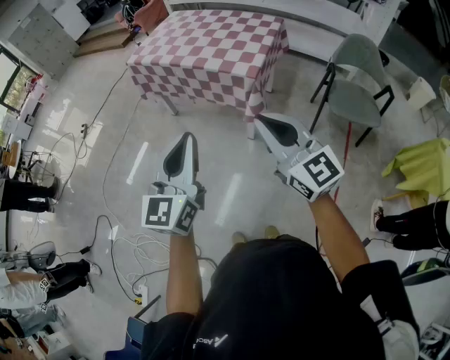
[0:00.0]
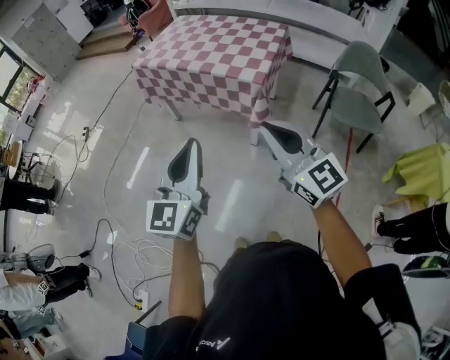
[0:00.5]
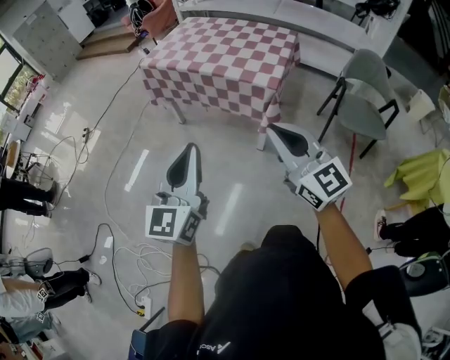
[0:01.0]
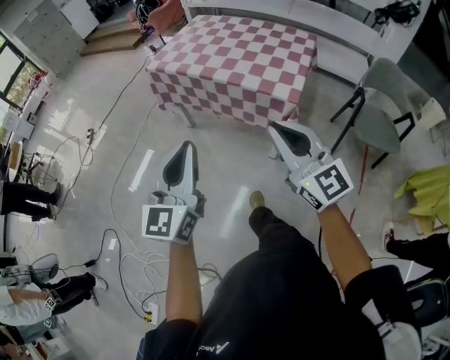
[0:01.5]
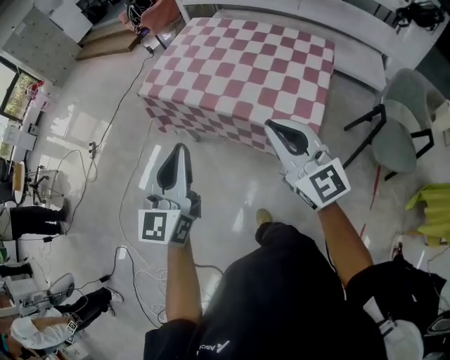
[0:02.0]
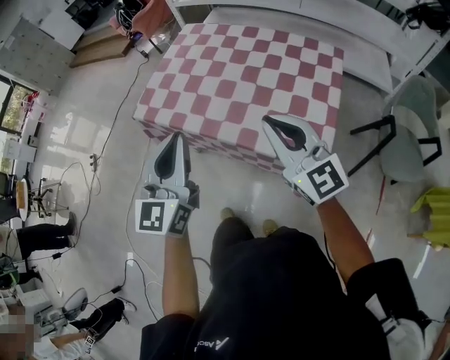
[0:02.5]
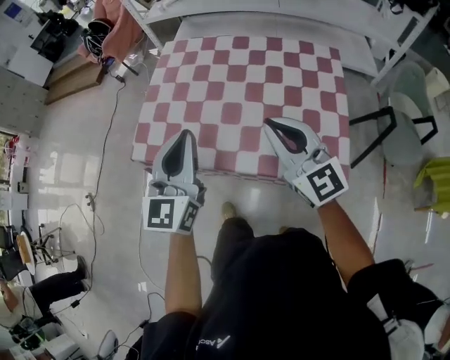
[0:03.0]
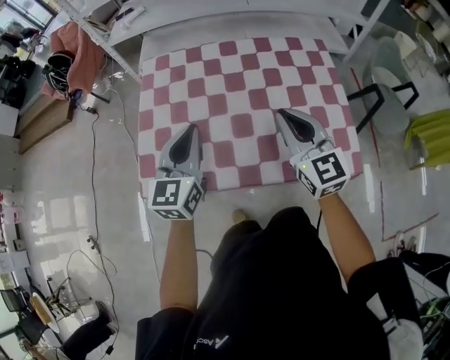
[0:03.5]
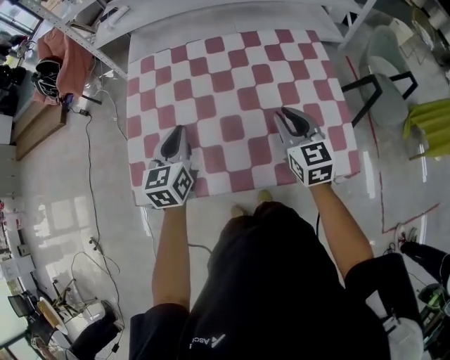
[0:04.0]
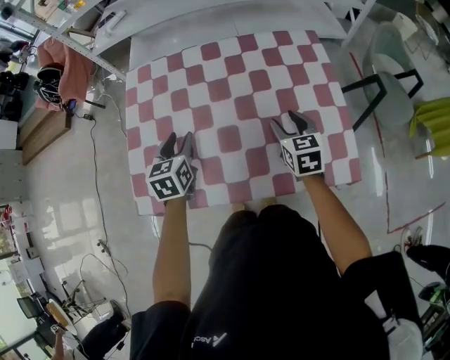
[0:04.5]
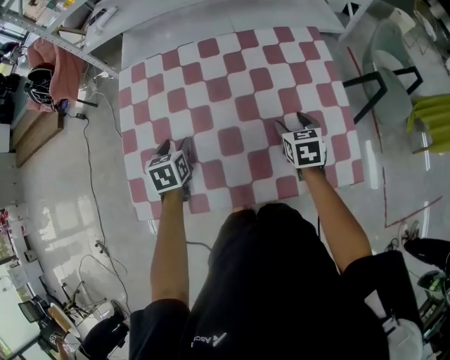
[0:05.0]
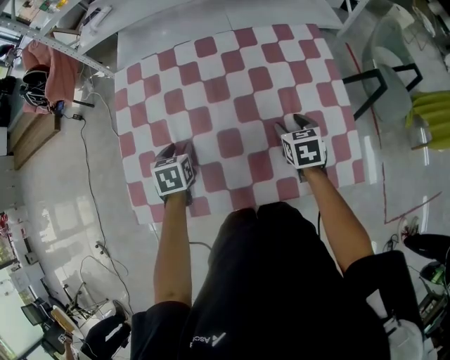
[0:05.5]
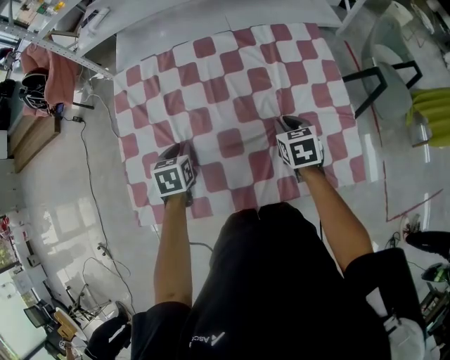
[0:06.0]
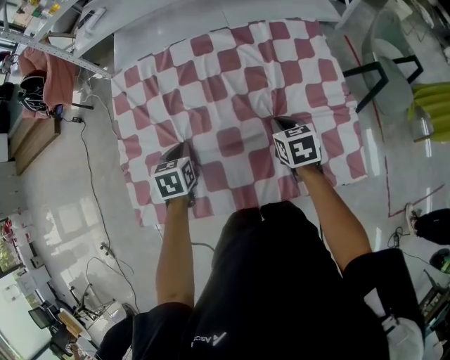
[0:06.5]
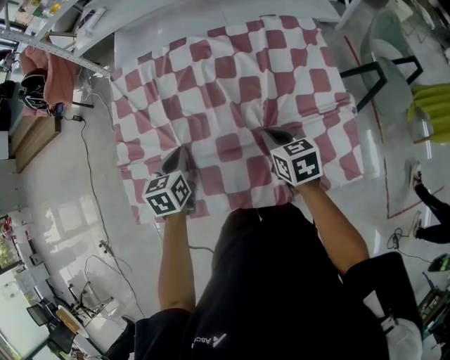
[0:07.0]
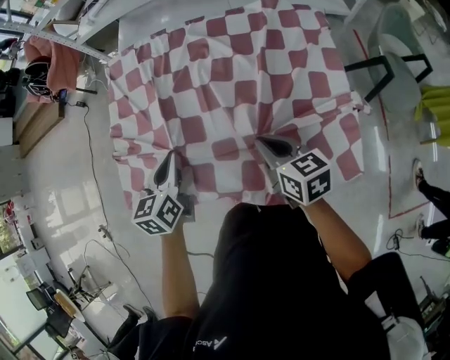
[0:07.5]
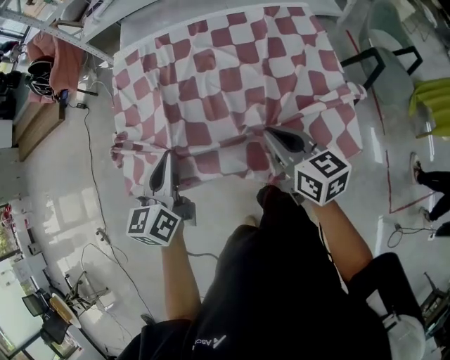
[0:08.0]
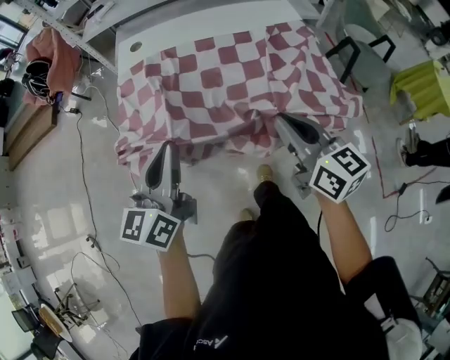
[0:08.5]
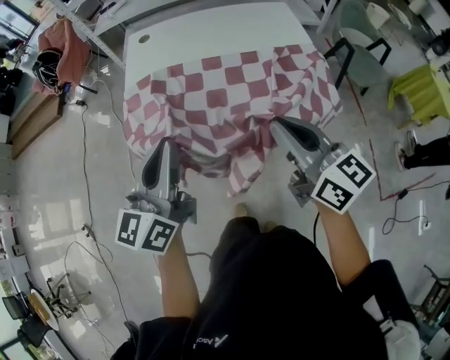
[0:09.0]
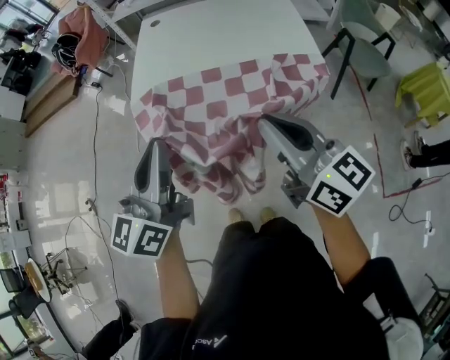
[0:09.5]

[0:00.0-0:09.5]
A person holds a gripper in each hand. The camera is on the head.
0:00.0 to 0:02.0: The two grippers travel together, forward, approximately 40 cm.
0:02.0 to 0:04.0: The left gripper moves some 60 cm, and rotates approximately 40 degrees, while the right gripper ends up some 40 cm from where it was, and rotates roughly 50 degrees.
0:04.0 to 0:05.5: Both grippers move downward and forward, about 15 cm. The right gripper swivels approximately 30 degrees, and opens up; the left gripper tips its fingers downward by some 30 degrees, and opens up.
0:05.5 to 0:07.5: The right gripper moves backward, to the left and upward, roughly 10 cm, changes its angle by about 30 degrees, and closes. The left gripper is displaced upward and backward by some 10 cm, turns by about 30 degrees, and closes up.
0:07.5 to 0:09.5: Both grippers are carried backward, roughly 40 cm. The grippers both shift upward by roughly 20 cm. The right gripper angles its fingers upward, by about 30 degrees. The left gripper tilts its fingers about 40 degrees upward.

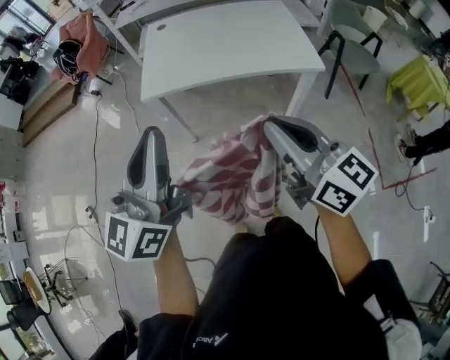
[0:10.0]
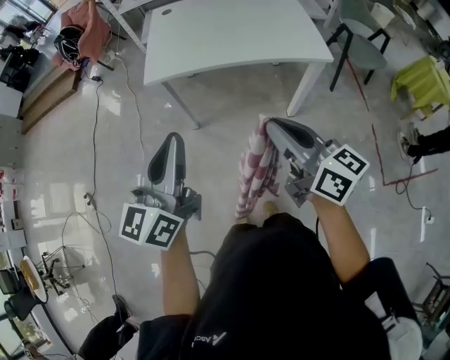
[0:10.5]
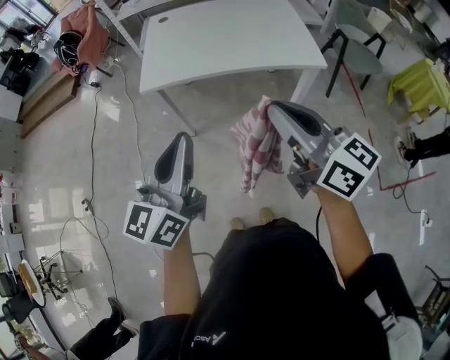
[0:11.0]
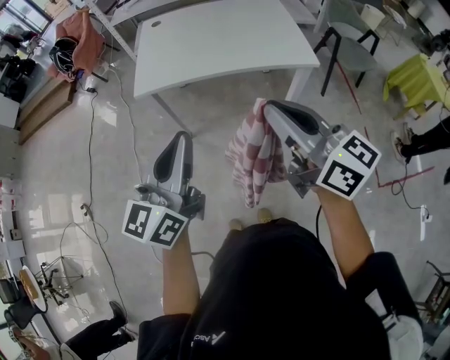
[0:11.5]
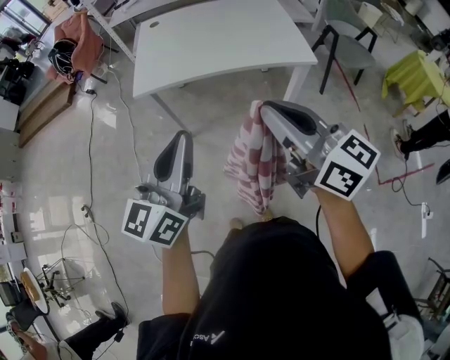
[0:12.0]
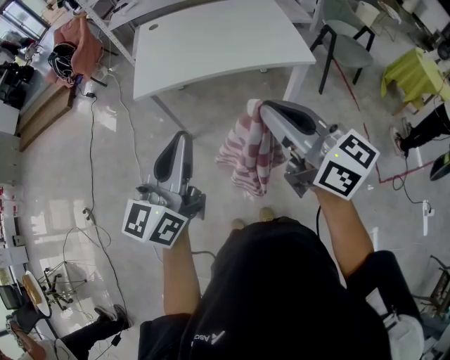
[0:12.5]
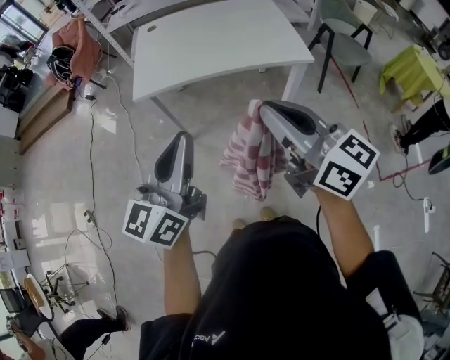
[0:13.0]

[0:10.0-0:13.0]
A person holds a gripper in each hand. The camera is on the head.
0:10.0 to 0:11.5: The left gripper heads downward, covering some 10 cm.
0:11.5 to 0:13.0: The grippers make only small movements.

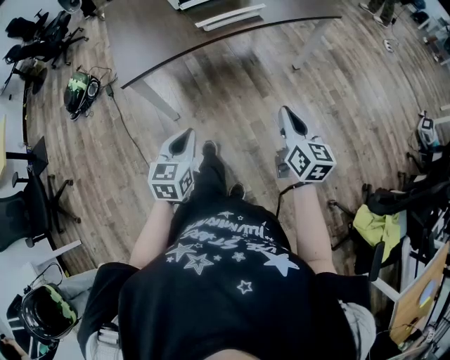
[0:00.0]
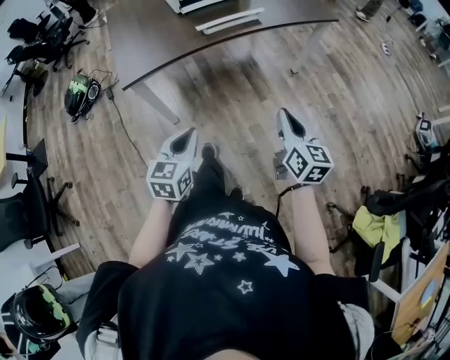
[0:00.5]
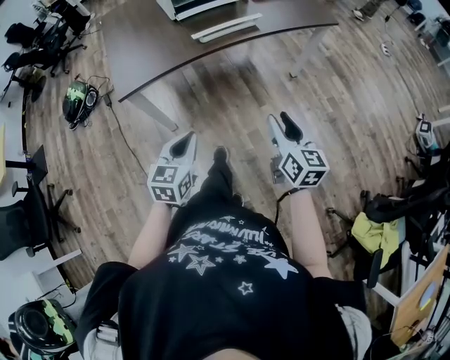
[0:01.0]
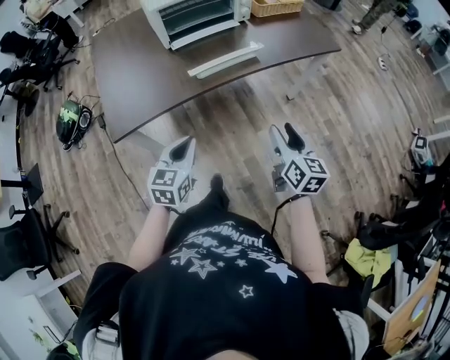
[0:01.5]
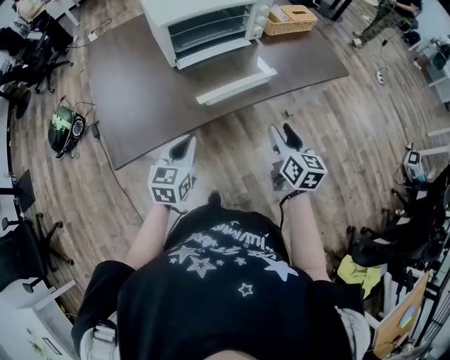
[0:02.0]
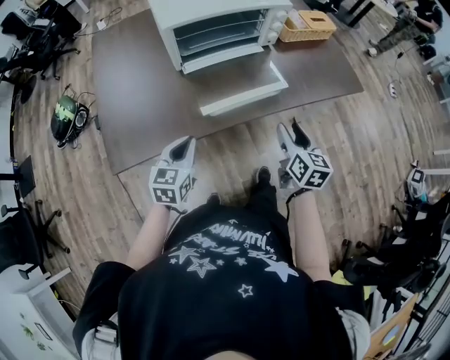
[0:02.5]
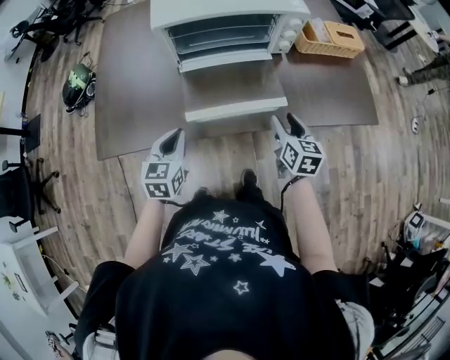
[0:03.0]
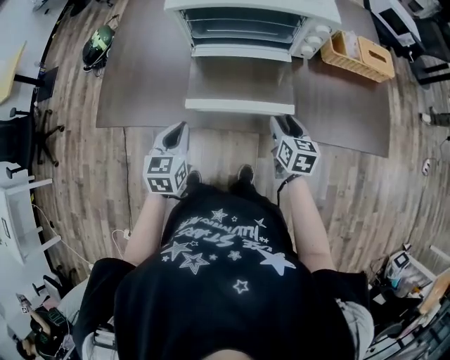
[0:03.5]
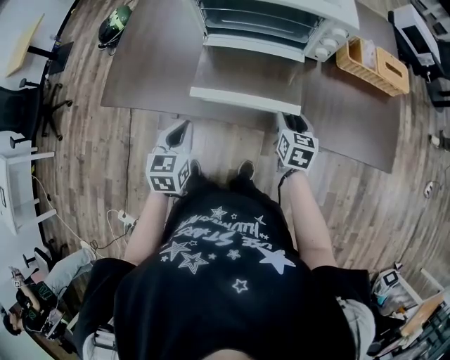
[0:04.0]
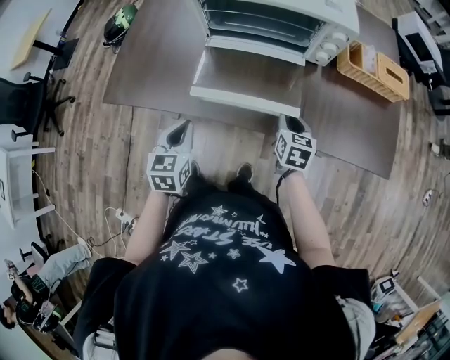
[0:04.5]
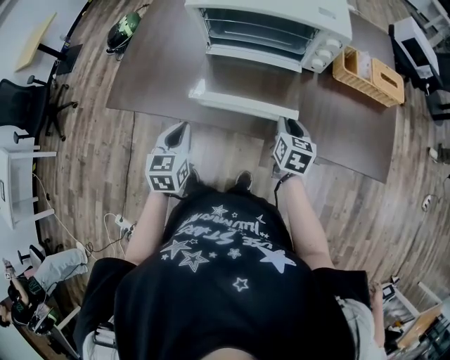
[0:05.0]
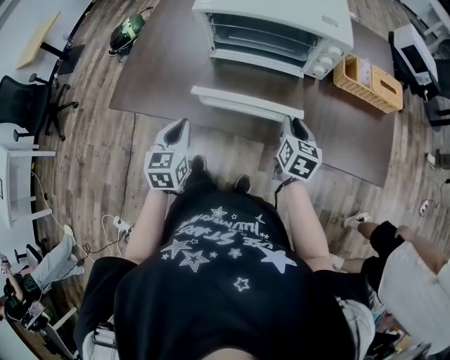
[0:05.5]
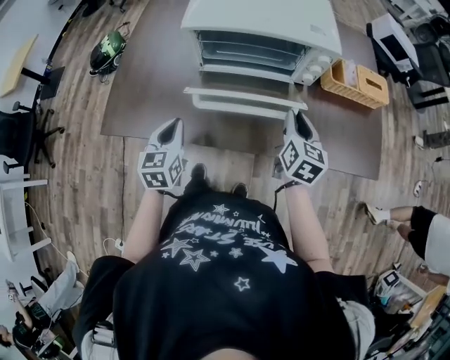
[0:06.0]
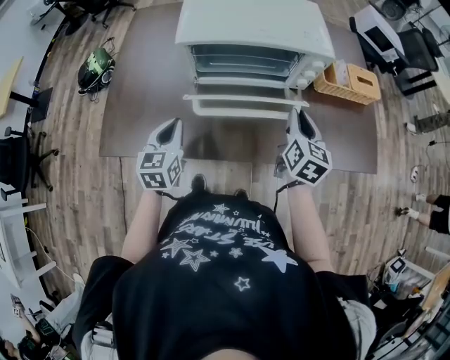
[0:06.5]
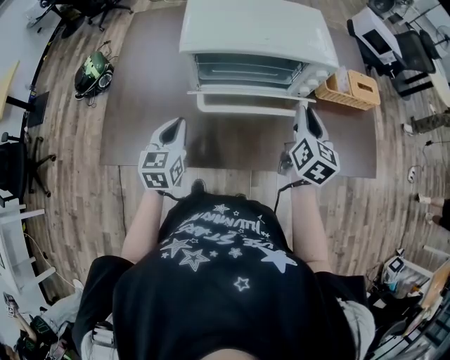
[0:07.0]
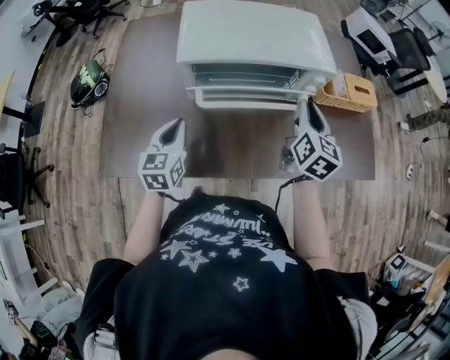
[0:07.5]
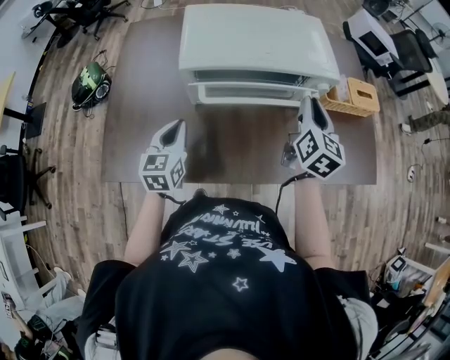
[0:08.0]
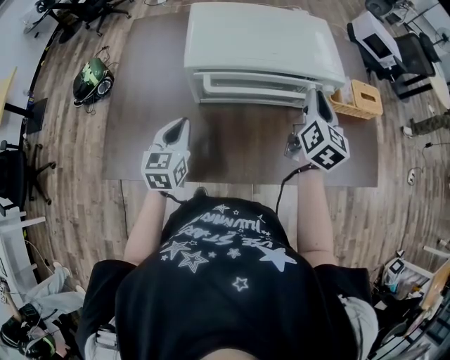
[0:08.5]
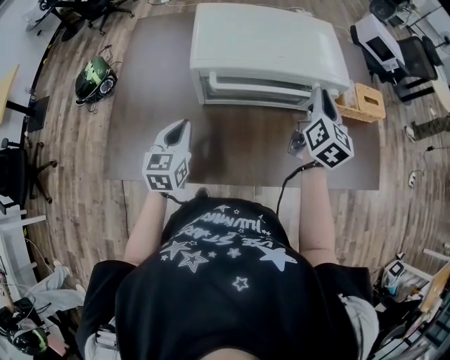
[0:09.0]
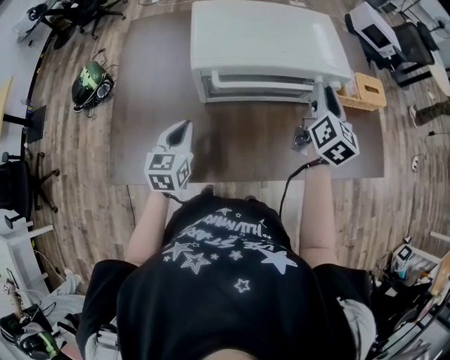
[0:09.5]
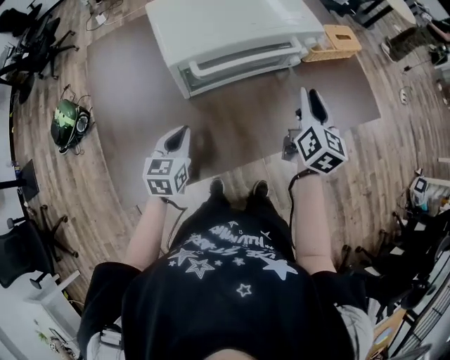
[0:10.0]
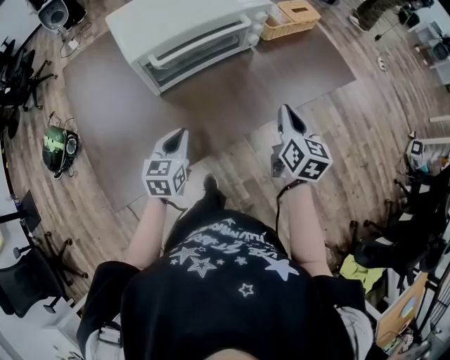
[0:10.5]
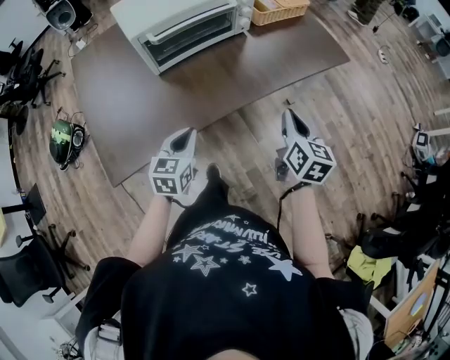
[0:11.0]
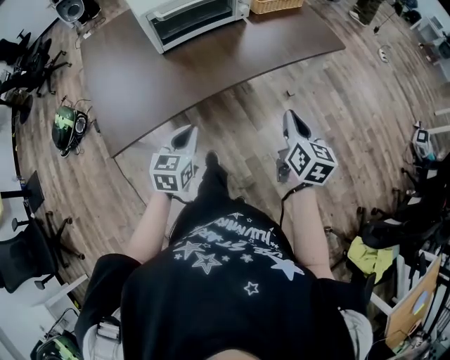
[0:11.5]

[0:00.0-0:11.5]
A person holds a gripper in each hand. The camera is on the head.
0:00.0 to 0:02.0: The grippers both shift forward by some 30 cm. The right gripper opens up.
0:02.0 to 0:04.0: The right gripper ends up approximately 30 cm from where it was, and rotates approximately 40 degrees. Meanwhile the left gripper moves approximately 10 cm, and rotates some 40 degrees.
0:04.0 to 0:06.0: The right gripper shifts approximately 15 cm upward, and closes its fingers, while the left gripper is displaced forward by roughly 10 cm.
0:06.0 to 0:07.5: The right gripper travels forward and upward by approximately 10 cm. The left gripper heads forward, covering roughly 10 cm.
0:07.5 to 0:09.5: The right gripper ends up about 5 cm from where it was.
0:09.5 to 0:11.5: The left gripper moves backward and to the right, some 30 cm, and turns by some 30 degrees. The right gripper is displaced backward by some 40 cm, and closes up.

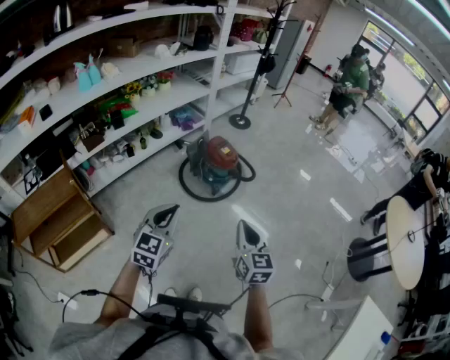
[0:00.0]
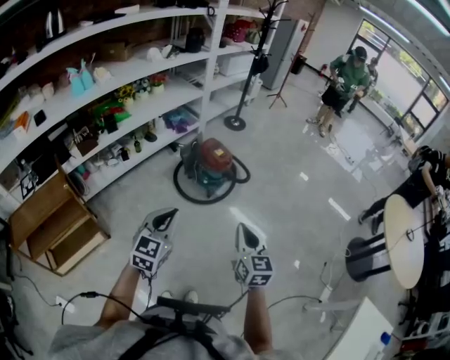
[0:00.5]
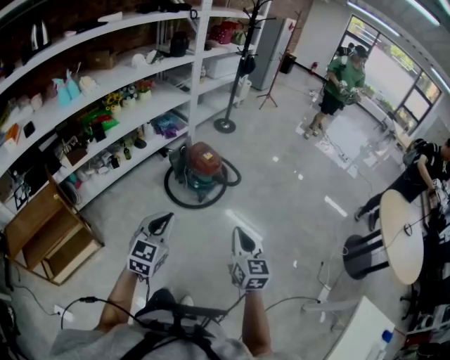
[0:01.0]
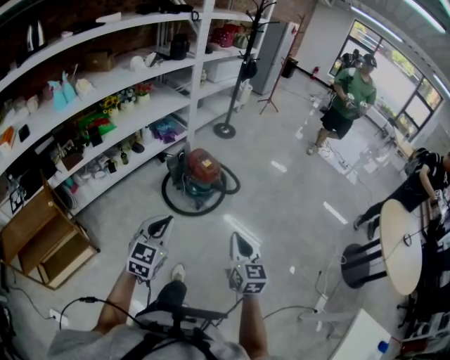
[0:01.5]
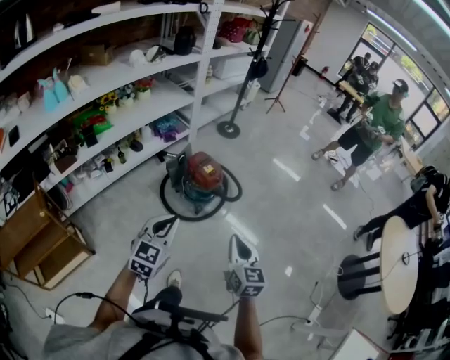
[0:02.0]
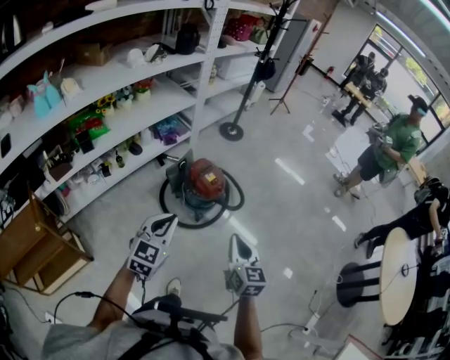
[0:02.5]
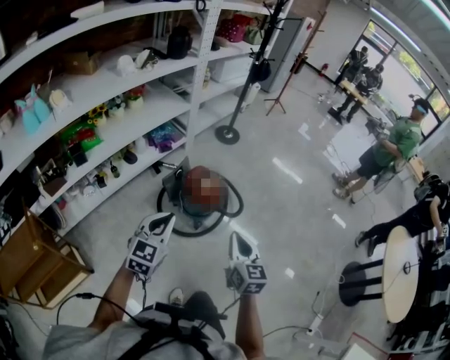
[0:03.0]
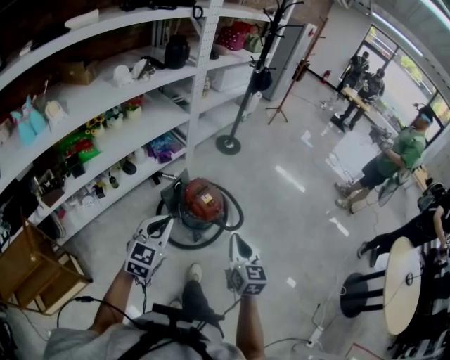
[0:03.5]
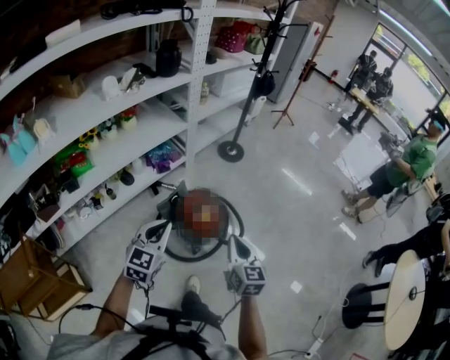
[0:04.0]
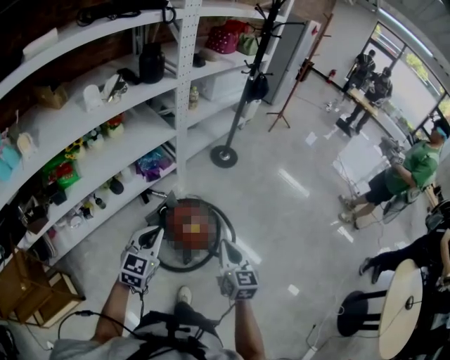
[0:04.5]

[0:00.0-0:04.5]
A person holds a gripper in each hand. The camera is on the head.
0:00.0 to 0:02.0: The grippers both shift forward by some 20 cm.
0:02.0 to 0:04.5: The pair of grippers is taken forward, about 40 cm.
